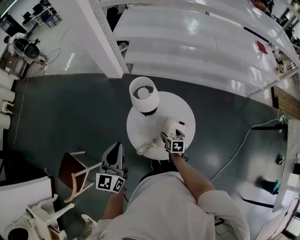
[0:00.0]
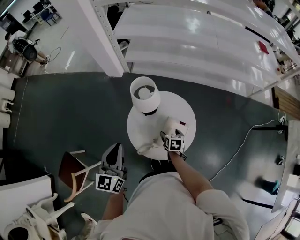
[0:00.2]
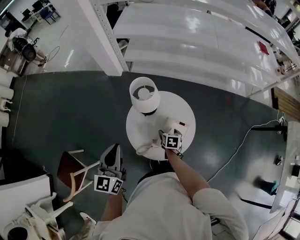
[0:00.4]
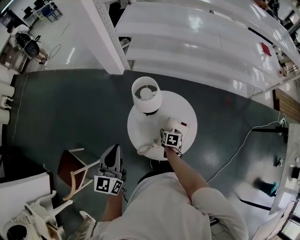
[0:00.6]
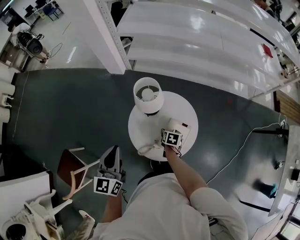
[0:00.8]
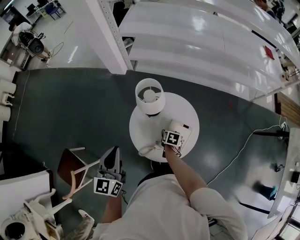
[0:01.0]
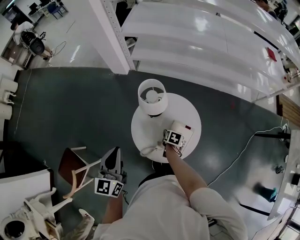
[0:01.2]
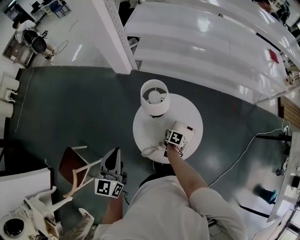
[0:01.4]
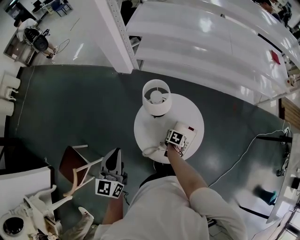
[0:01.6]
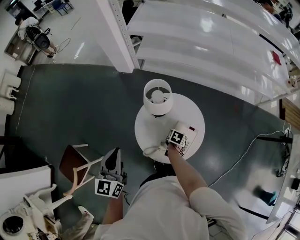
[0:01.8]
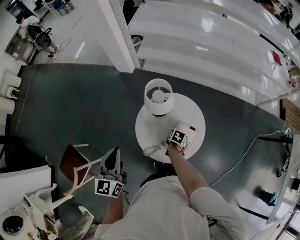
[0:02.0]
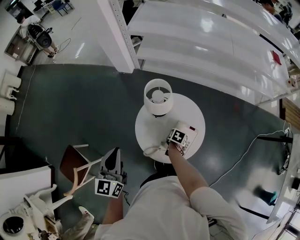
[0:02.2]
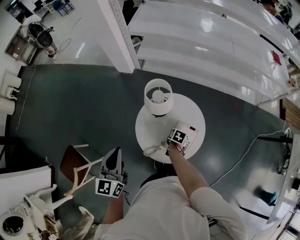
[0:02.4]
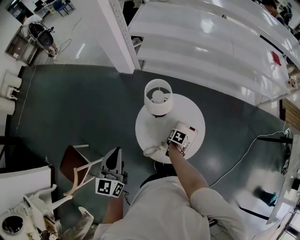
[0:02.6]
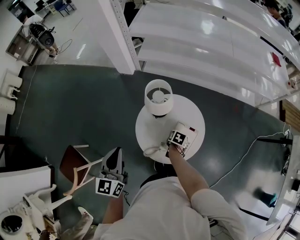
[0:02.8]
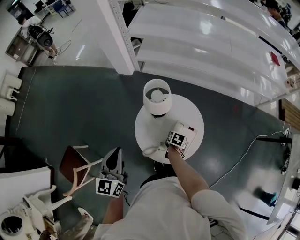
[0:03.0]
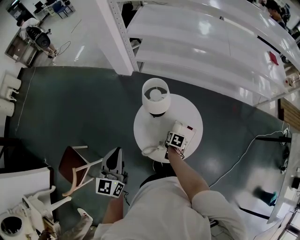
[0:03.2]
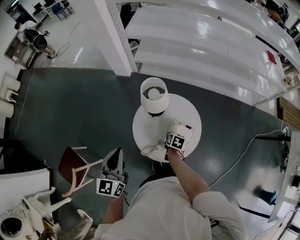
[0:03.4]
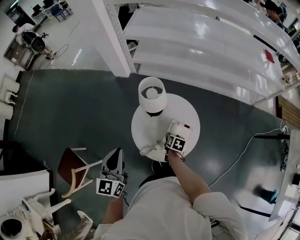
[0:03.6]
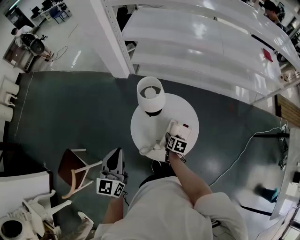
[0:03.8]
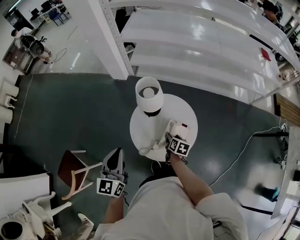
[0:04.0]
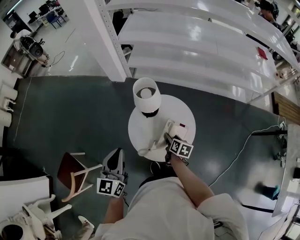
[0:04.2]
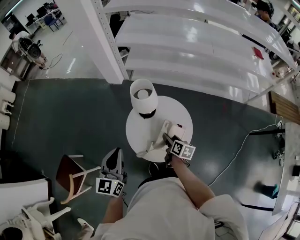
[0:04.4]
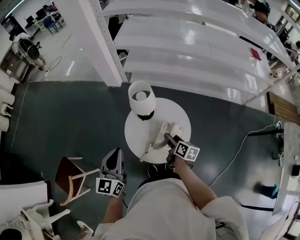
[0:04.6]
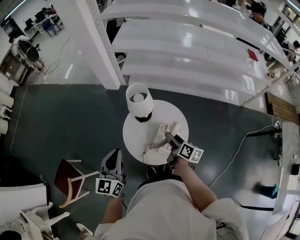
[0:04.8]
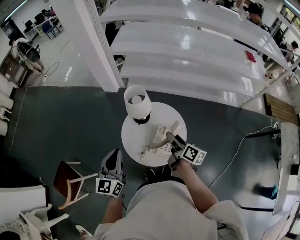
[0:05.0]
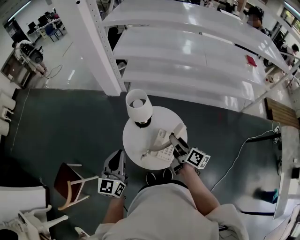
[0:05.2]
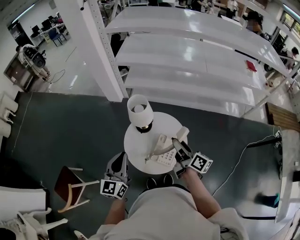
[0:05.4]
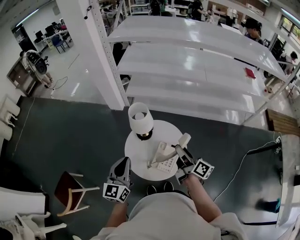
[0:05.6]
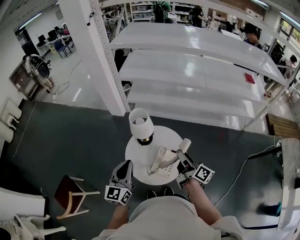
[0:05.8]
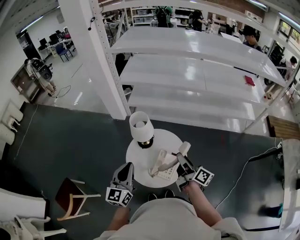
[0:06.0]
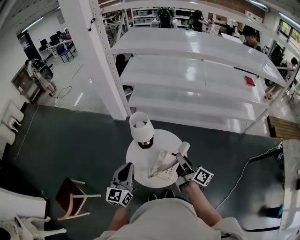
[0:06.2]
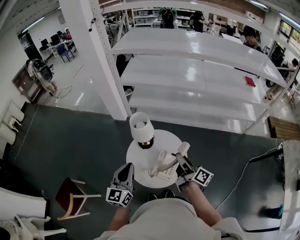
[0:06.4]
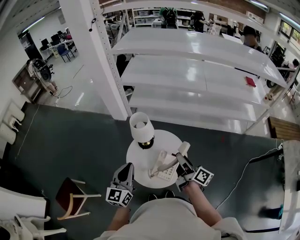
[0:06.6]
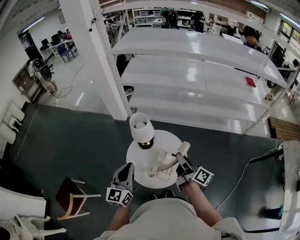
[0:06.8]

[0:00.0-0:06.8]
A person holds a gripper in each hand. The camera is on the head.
0:00.0 to 0:01.4: The right gripper goes roughly 5 cm downward, and changes its angle by some 20 degrees.
0:01.4 to 0:02.8: There are only small adjustments of the grippers.
0:02.8 to 0:04.0: The right gripper shifts approximately 5 cm upward, and changes its angle by about 20 degrees.
0:04.0 to 0:05.4: The left gripper goes approximately 5 cm to the right; the right gripper heads upward, covering roughly 25 cm, and angles its fingers upward, by about 40 degrees.
0:05.4 to 0:06.8: There are only small adjustments of the grippers.

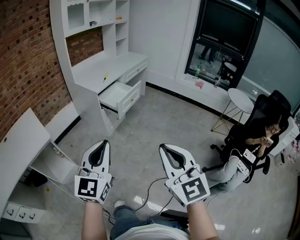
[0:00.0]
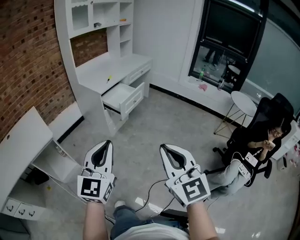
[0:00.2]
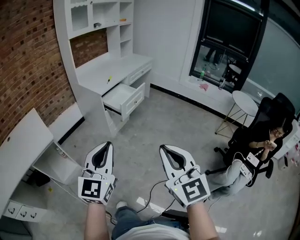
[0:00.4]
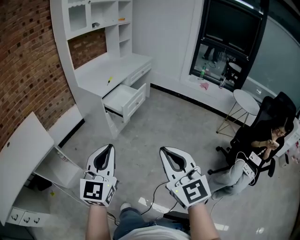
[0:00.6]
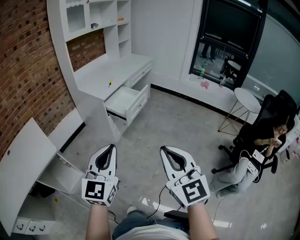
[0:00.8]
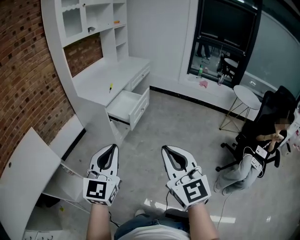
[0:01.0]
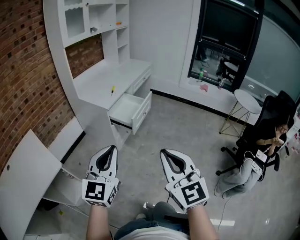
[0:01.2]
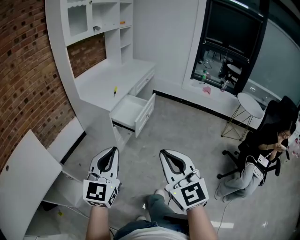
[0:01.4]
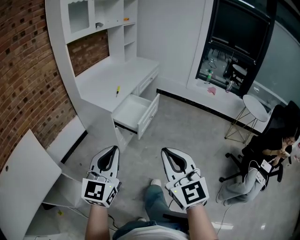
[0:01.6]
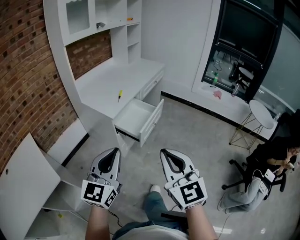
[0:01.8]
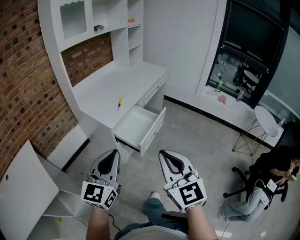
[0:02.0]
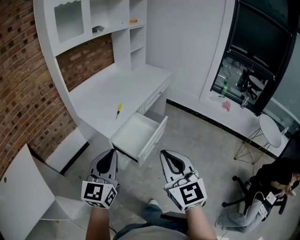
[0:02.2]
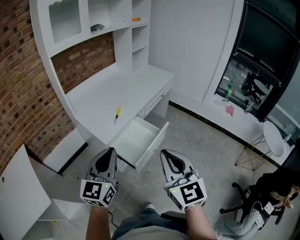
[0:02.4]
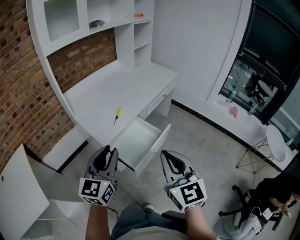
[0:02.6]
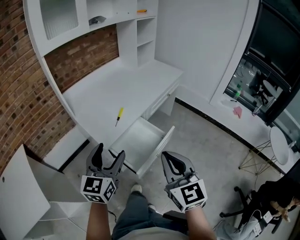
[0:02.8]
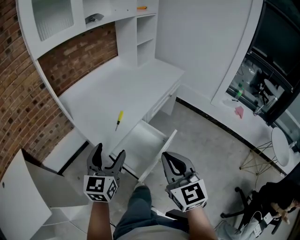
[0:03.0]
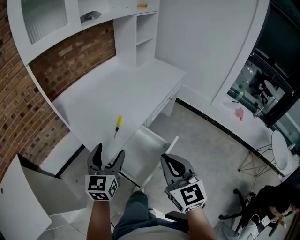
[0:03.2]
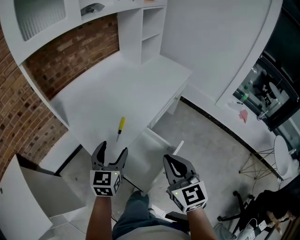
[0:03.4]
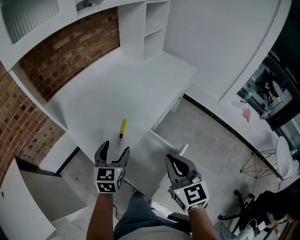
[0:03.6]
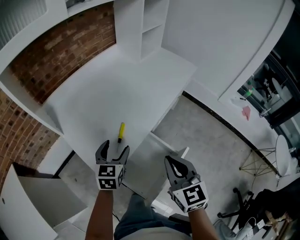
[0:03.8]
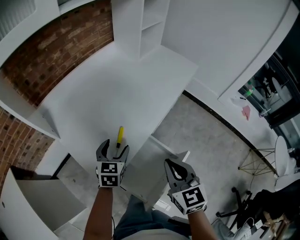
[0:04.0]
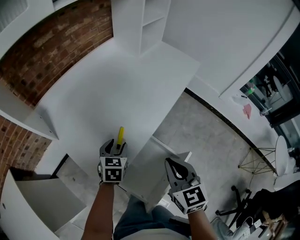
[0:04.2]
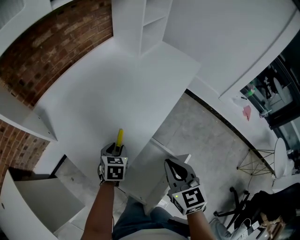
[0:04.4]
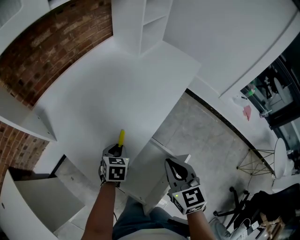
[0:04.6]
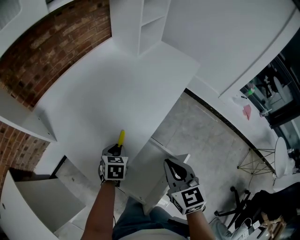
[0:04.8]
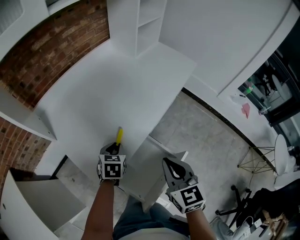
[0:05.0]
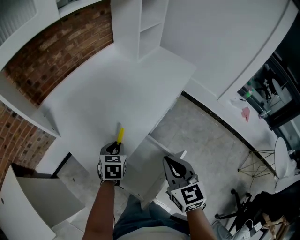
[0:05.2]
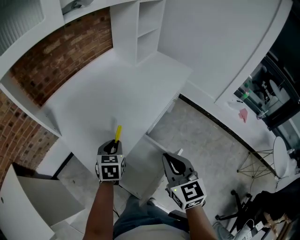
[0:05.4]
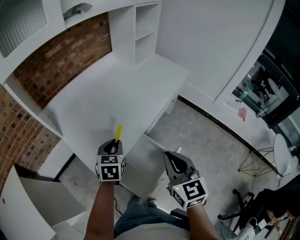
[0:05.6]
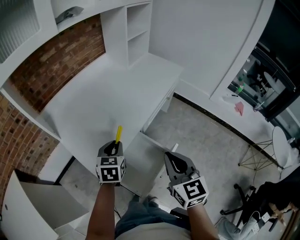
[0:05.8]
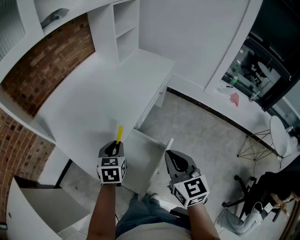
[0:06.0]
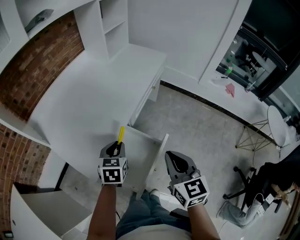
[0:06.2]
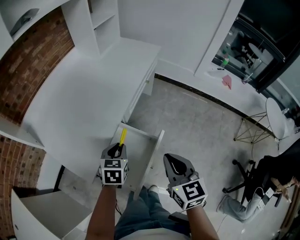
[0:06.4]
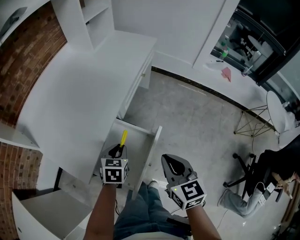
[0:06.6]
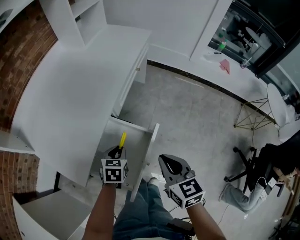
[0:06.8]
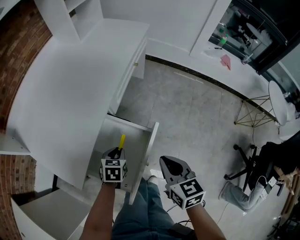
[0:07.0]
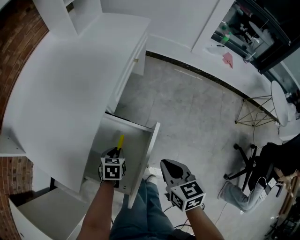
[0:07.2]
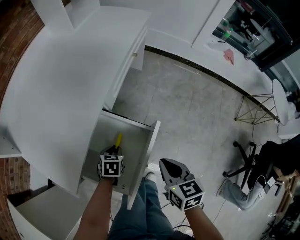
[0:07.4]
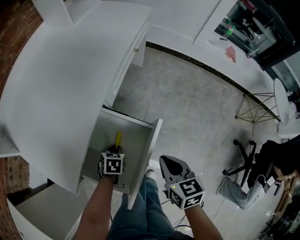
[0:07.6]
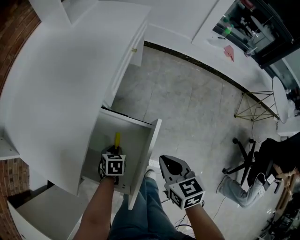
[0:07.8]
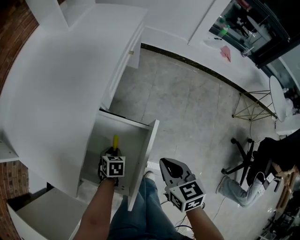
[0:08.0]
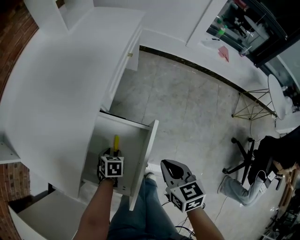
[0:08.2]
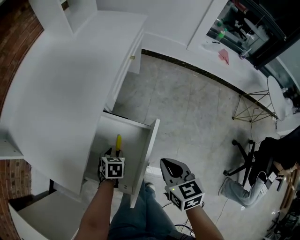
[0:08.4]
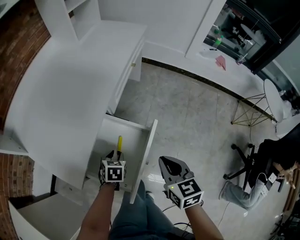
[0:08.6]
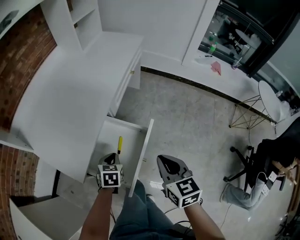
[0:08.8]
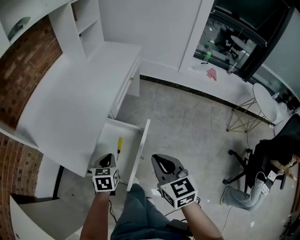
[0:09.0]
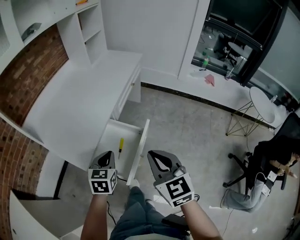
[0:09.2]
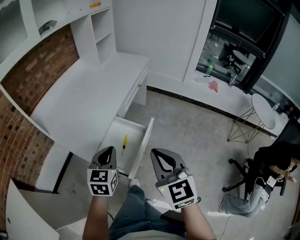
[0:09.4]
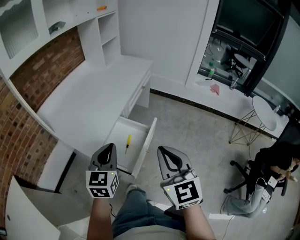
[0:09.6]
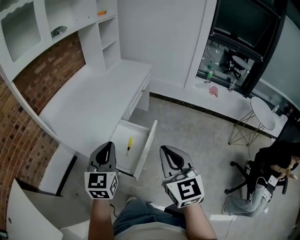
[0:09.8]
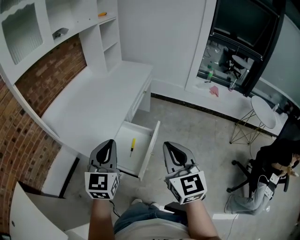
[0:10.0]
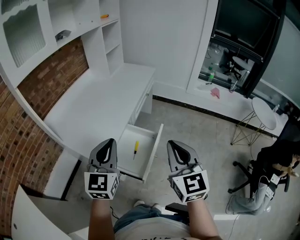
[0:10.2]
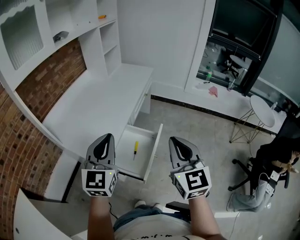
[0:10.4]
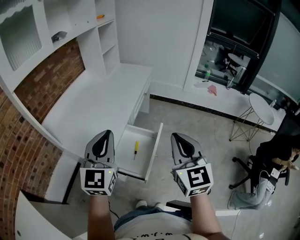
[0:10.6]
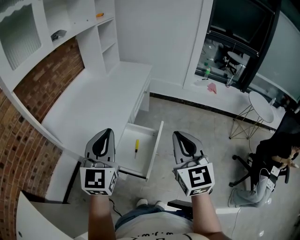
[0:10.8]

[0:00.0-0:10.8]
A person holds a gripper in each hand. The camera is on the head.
0:00.0 to 0:01.6: Both grippers travel together forward and to the left, approximately 25 cm.
0:01.6 to 0:03.0: The two grippers travel together, forward, some 40 cm. The left gripper changes its angle by about 20 degrees, and opens.
0:03.0 to 0:04.6: Both grippers move forward and downward, roughly 30 cm. The left gripper angles its fingers downward, by some 40 degrees, and closes. Meanwhile the right gripper turns by some 20 degrees.
0:04.6 to 0:06.2: The right gripper travels backward and to the right by roughly 15 cm. The left gripper moves to the right, upward and backward, roughly 15 cm.
0:06.2 to 0:07.8: Both grippers move downward, approximately 25 cm. The right gripper changes its angle by roughly 30 degrees. Meanwhile the left gripper turns by about 30 degrees.
0:07.8 to 0:09.2: The right gripper moves upward and backward, roughly 25 cm, and turns by some 30 degrees; the left gripper goes approximately 30 cm upward, and points its fingers about 30 degrees further upward.
0:09.2 to 0:10.8: The left gripper goes roughly 25 cm upward, and tilts its fingers approximately 40 degrees upward. Meanwhile the right gripper heads upward, covering about 15 cm, and swivels approximately 20 degrees.

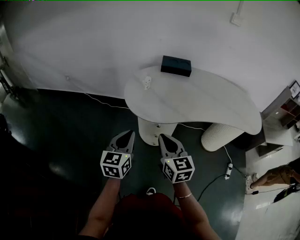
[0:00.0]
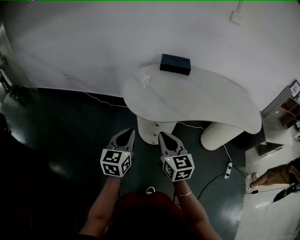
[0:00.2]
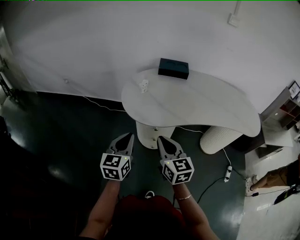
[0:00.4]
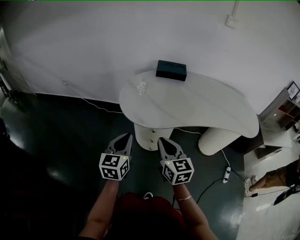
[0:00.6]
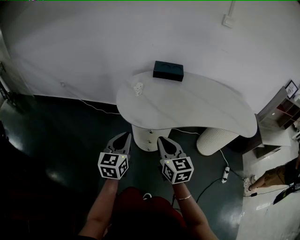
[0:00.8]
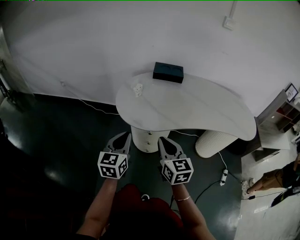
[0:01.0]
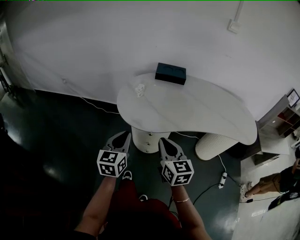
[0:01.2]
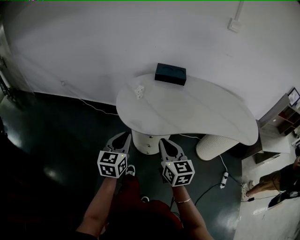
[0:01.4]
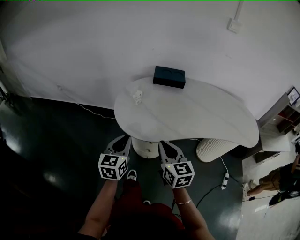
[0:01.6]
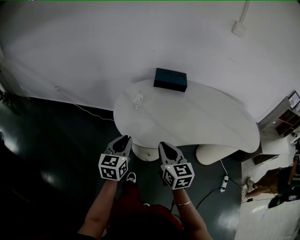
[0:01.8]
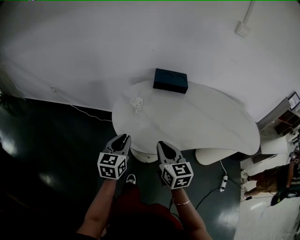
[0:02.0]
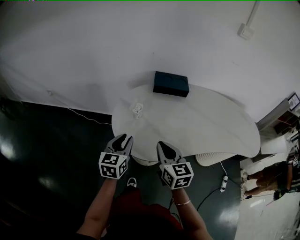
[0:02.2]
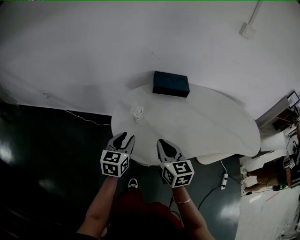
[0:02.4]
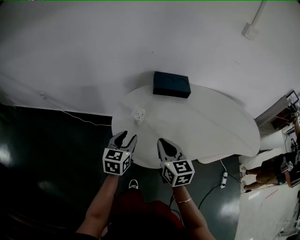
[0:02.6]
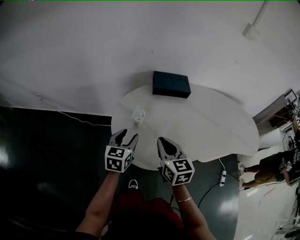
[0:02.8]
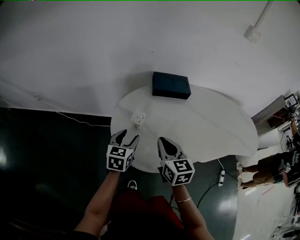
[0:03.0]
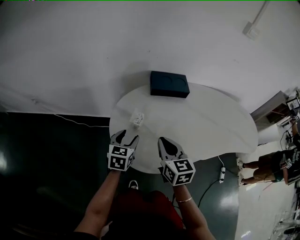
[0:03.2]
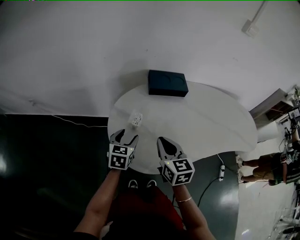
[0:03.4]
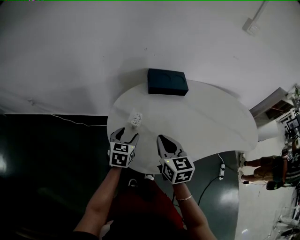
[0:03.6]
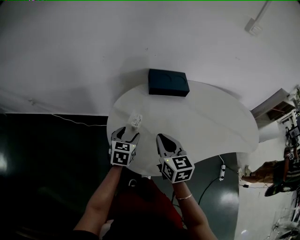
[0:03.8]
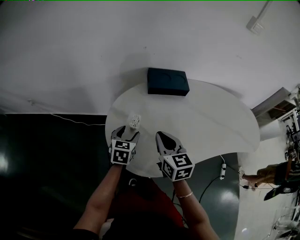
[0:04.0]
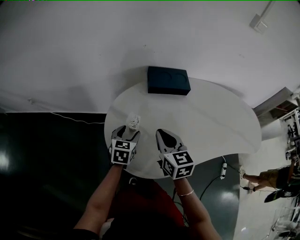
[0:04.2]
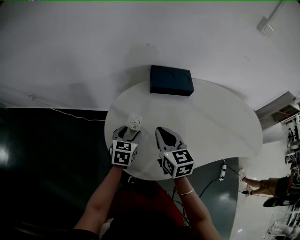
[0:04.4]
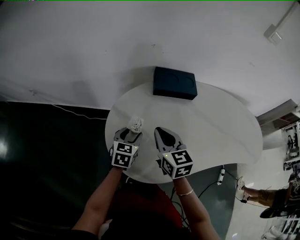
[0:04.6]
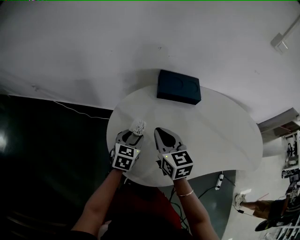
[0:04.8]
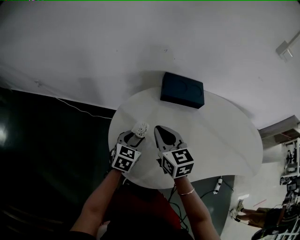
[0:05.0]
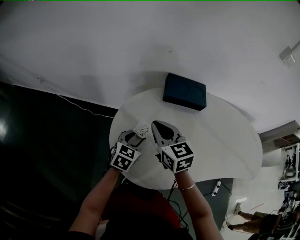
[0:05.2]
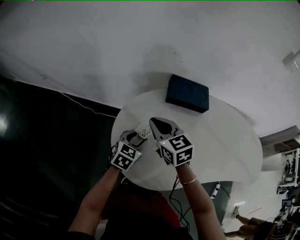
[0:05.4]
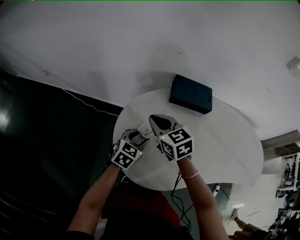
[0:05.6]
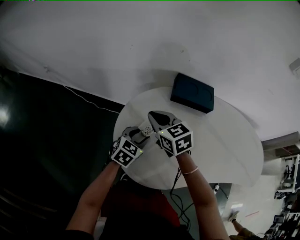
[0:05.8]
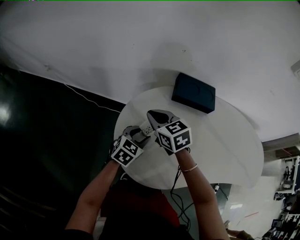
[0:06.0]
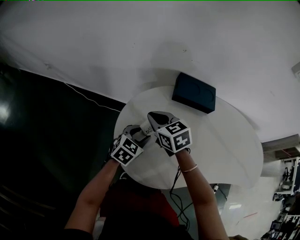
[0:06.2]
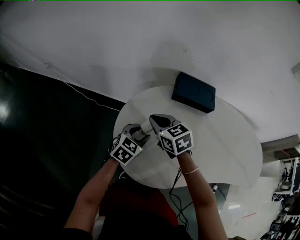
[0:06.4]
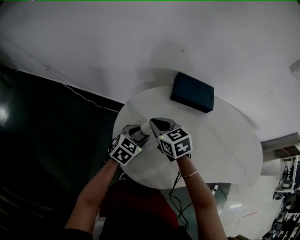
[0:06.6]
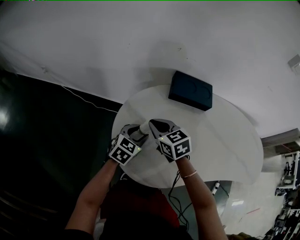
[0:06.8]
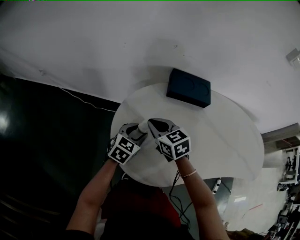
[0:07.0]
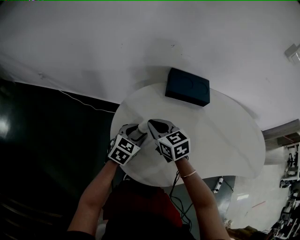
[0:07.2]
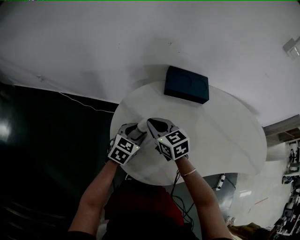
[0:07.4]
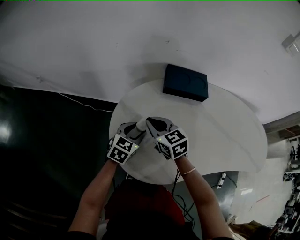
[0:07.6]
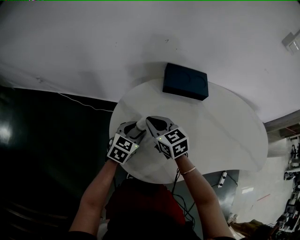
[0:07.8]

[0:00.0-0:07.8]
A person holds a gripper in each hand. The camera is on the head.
0:00.0 to 0:01.6: Both grippers travel together forward, approximately 10 cm.
0:01.6 to 0:03.2: The grippers both shift forward by approximately 25 cm. The left gripper opens.
0:03.2 to 0:04.6: The two grippers go about 10 cm forward.
0:04.6 to 0:06.2: The right gripper goes roughly 10 cm to the left and forward, and rotates approximately 30 degrees.
0:06.2 to 0:07.8: The grippers move only a little.
